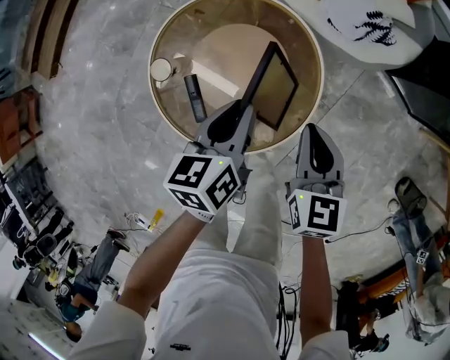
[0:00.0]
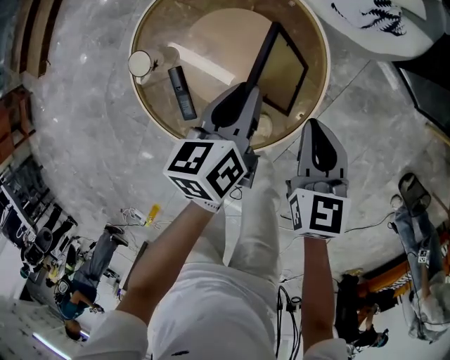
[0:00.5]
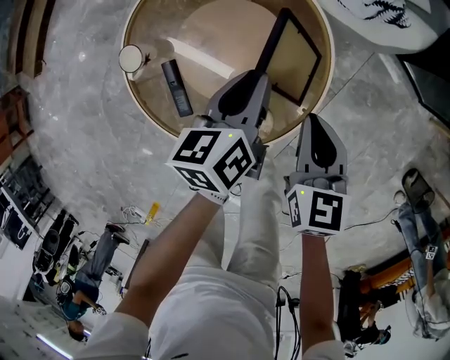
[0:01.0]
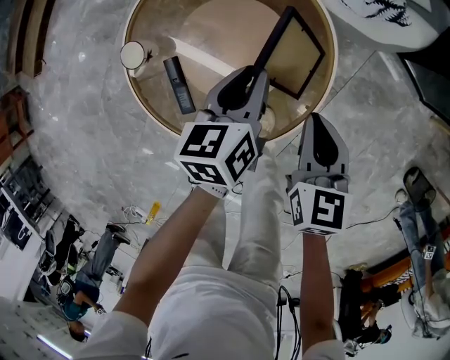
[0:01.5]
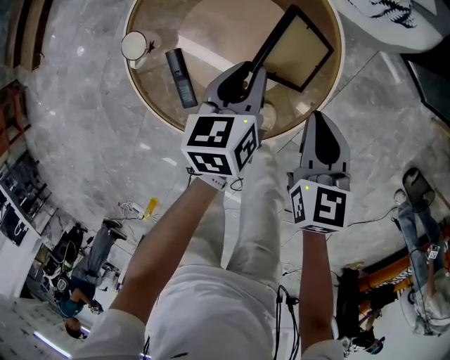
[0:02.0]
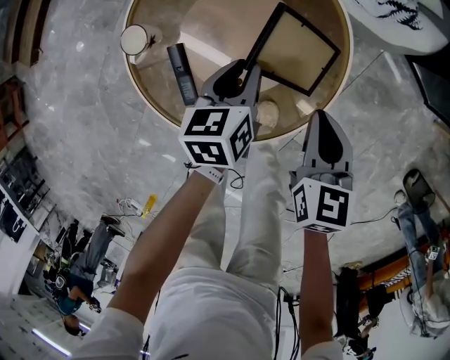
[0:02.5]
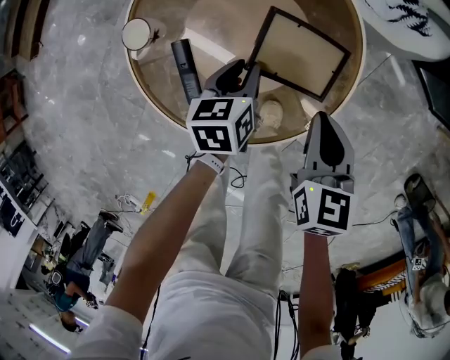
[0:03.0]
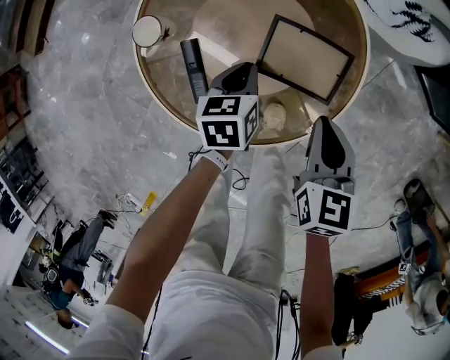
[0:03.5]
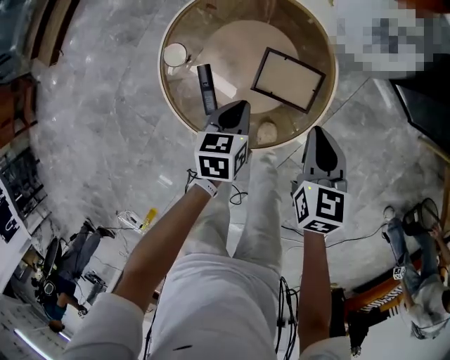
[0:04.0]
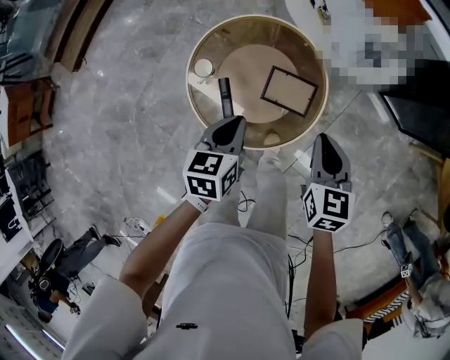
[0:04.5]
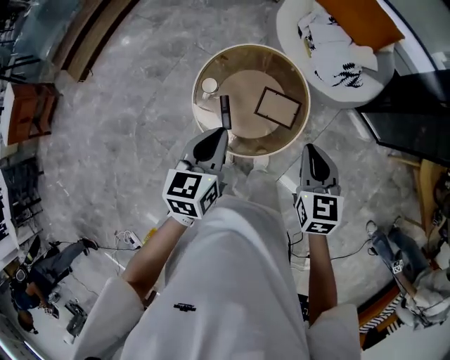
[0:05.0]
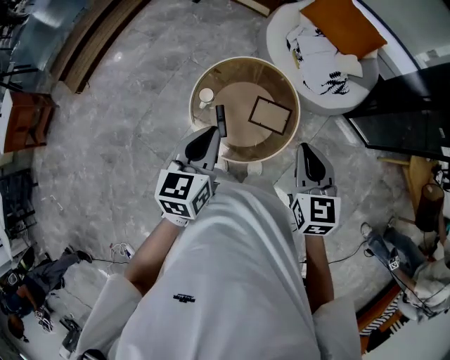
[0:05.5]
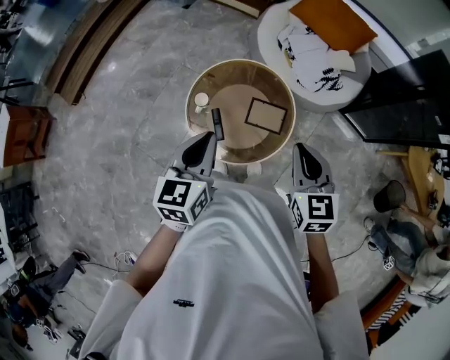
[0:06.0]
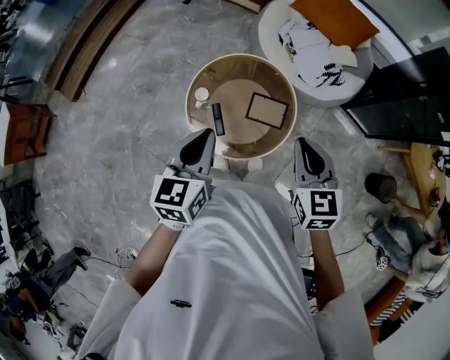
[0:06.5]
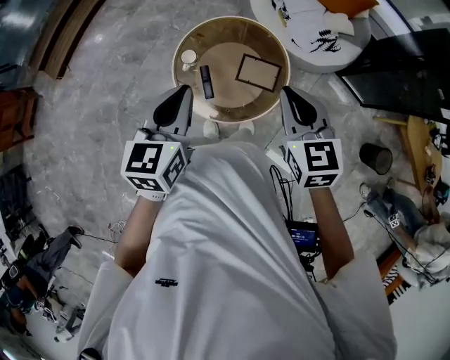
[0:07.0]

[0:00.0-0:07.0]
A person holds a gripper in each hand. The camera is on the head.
0:00.0 to 0:02.0: The two grippers go about 15 cm downward.
0:02.0 to 0:03.5: The left gripper moves downward and to the left, about 10 cm.
0:03.5 to 0:05.0: Both grippers move upward, some 40 cm. The left gripper rotates approximately 20 degrees.
0:05.0 to 0:07.0: Both grippers travel together upward, approximately 10 cm.

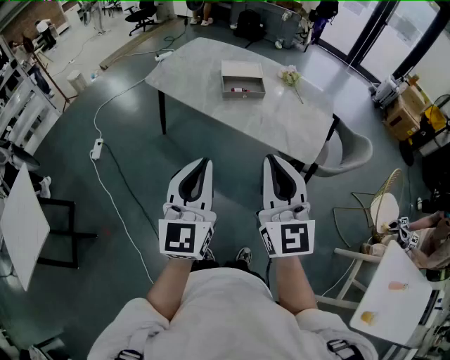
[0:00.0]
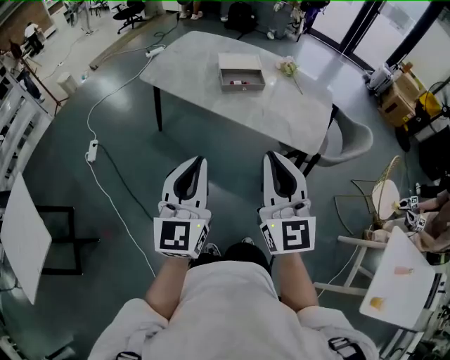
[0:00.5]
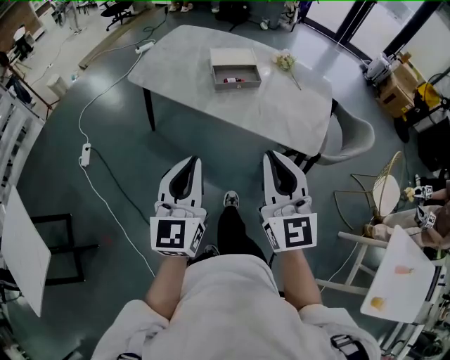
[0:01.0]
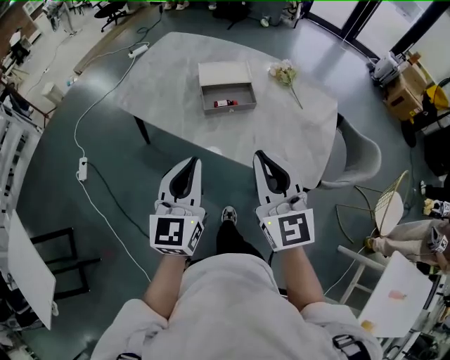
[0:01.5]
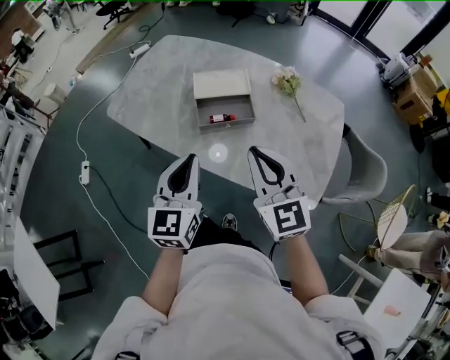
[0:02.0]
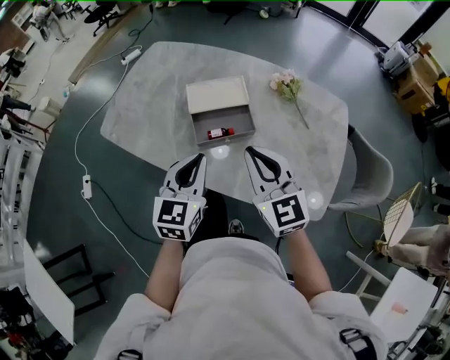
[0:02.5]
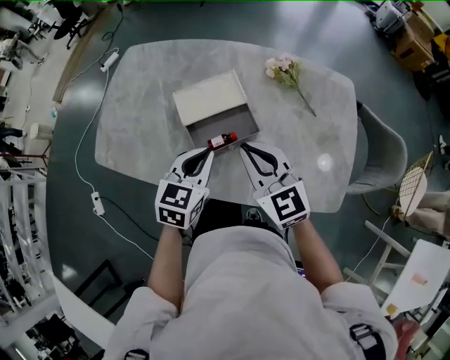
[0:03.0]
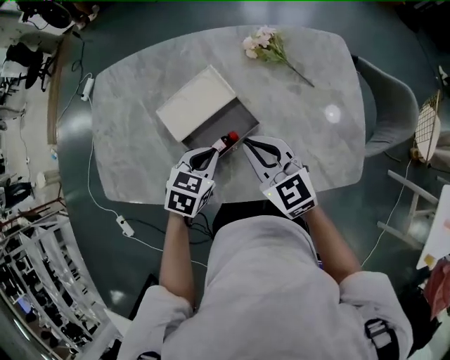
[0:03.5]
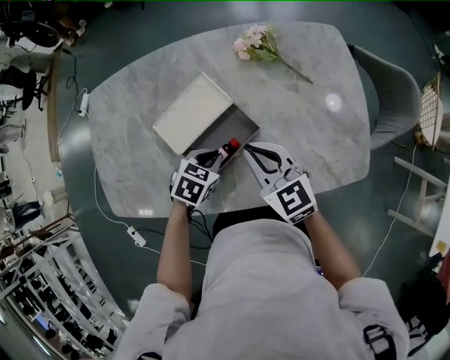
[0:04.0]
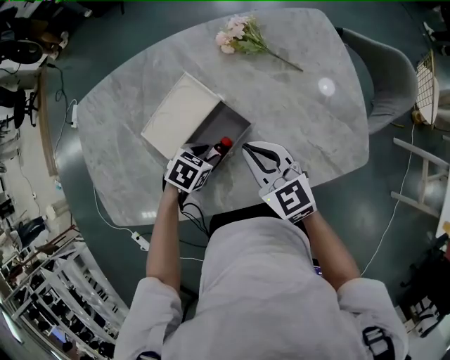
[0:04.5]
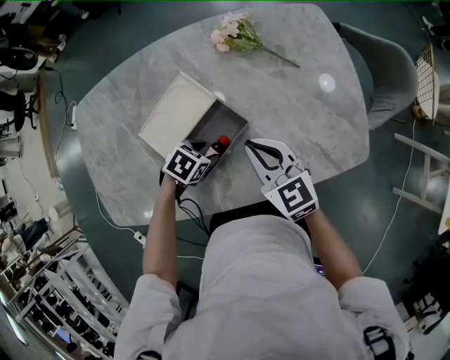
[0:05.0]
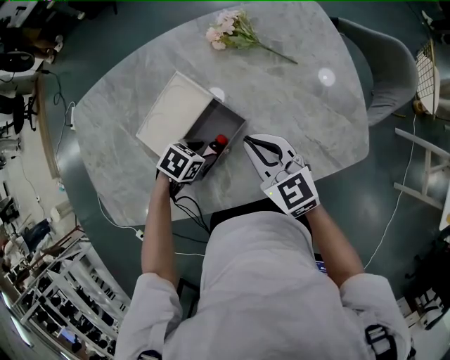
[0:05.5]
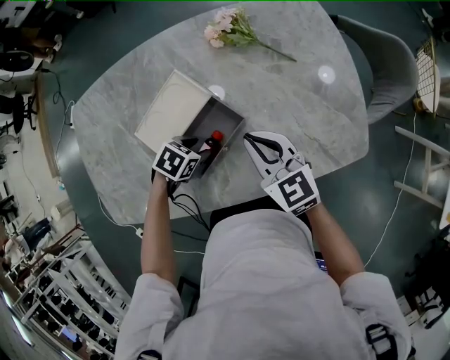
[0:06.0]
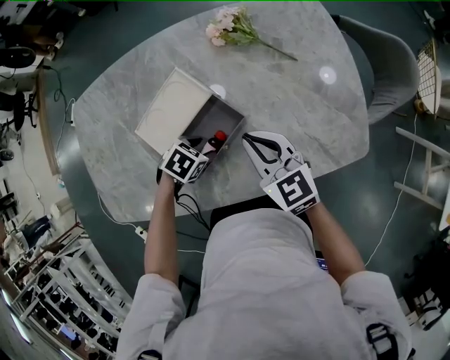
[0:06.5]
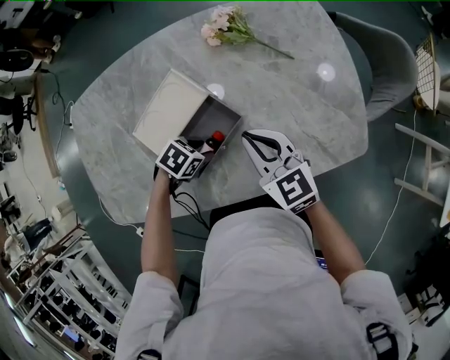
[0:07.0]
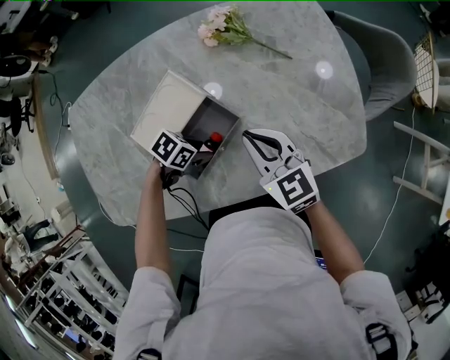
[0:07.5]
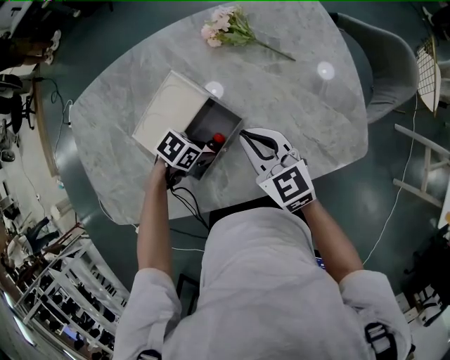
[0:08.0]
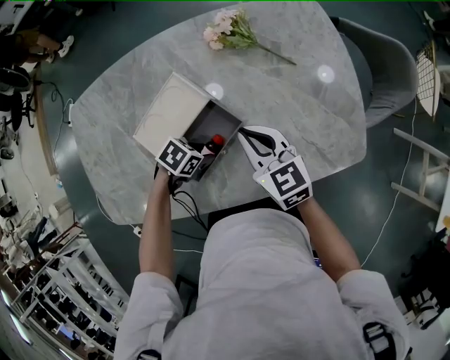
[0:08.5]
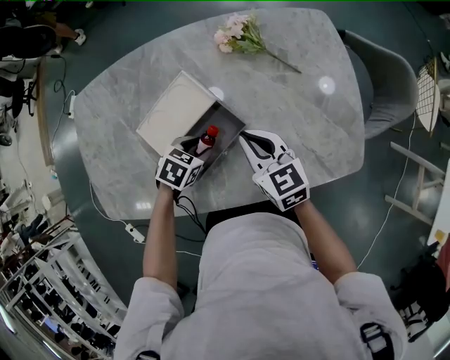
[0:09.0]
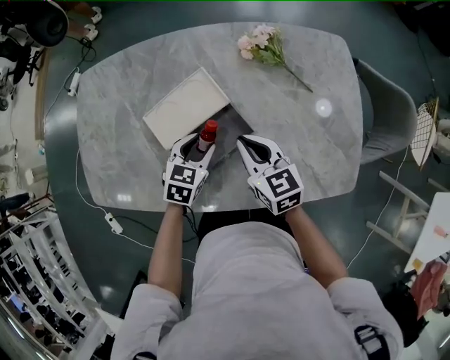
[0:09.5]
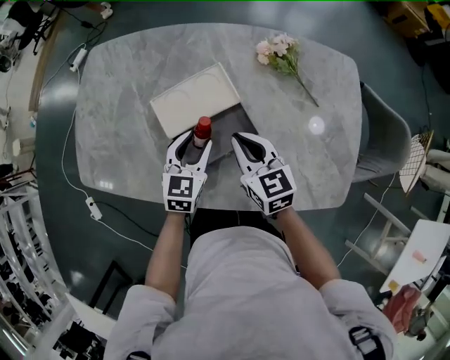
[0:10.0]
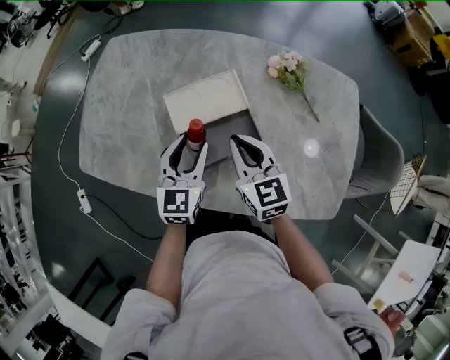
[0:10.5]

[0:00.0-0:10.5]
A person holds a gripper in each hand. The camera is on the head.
0:00.0 to 0:02.0: The two grippers go about 40 cm forward.
0:02.0 to 0:04.0: The right gripper moves about 30 cm, and swivels some 30 degrees. The left gripper travels downward by approximately 25 cm, and tilts its fingers roughly 50 degrees downward.
0:04.0 to 0:06.5: The left gripper shifts some 5 cm downward, rotates some 20 degrees, and opens.
0:08.5 to 0:10.5: The left gripper is displaced upward by about 20 cm, and tips its fingers upward by about 40 degrees, while the right gripper ends up approximately 10 cm from where it was.

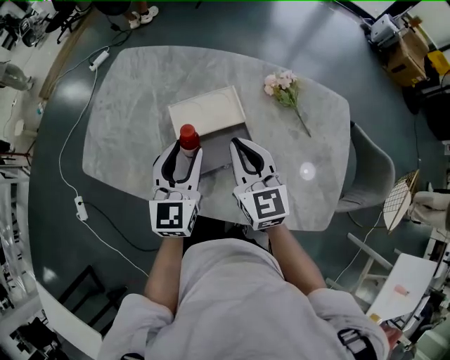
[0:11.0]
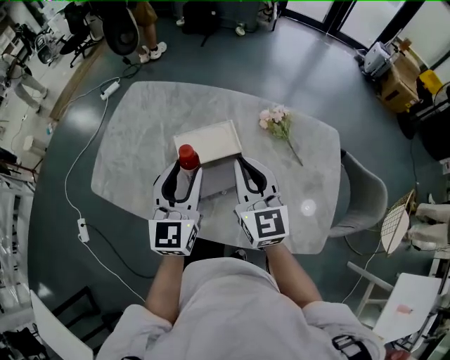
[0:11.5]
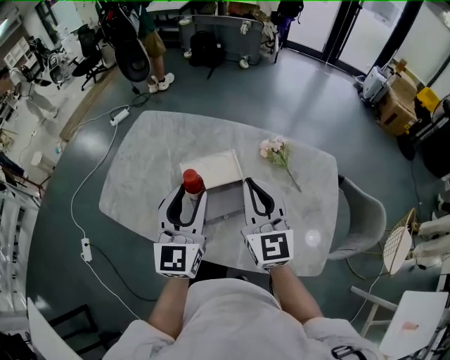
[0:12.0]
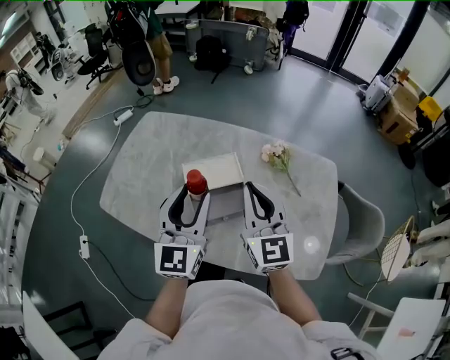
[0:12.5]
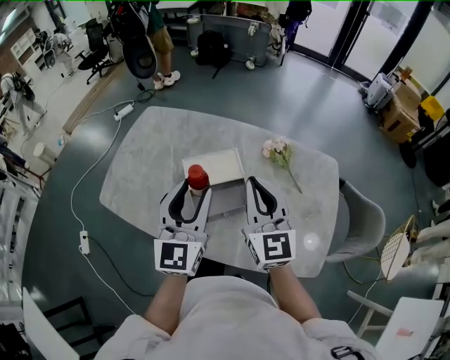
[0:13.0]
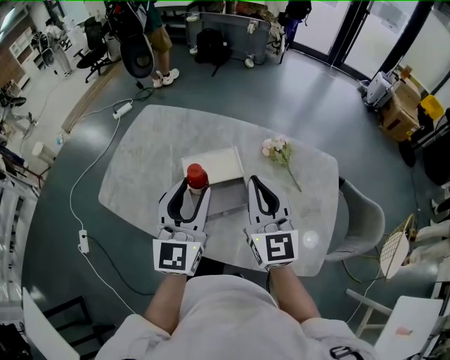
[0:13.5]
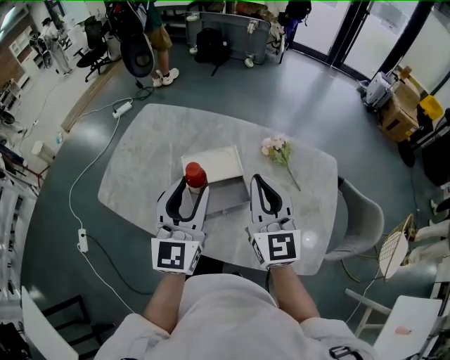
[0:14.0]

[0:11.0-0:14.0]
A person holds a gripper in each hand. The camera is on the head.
0:11.0 to 0:12.5: Both grippers move upward, some 15 cm.
0:12.5 to 0:14.0: The grippers move only a little.

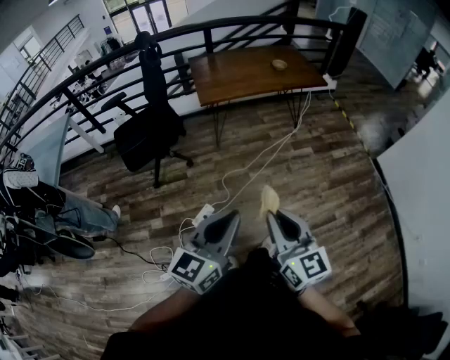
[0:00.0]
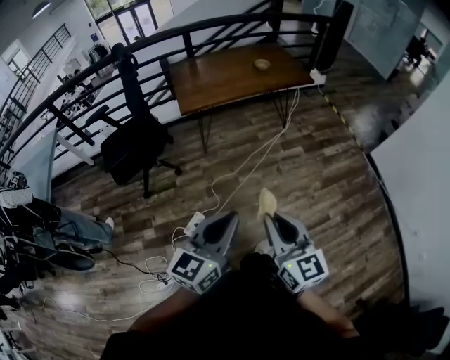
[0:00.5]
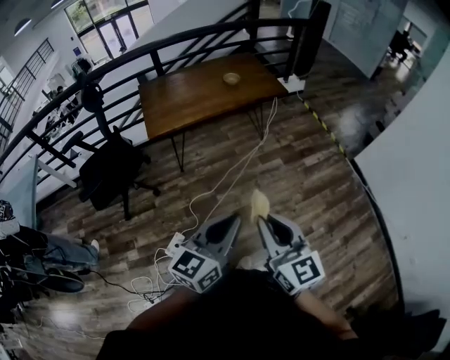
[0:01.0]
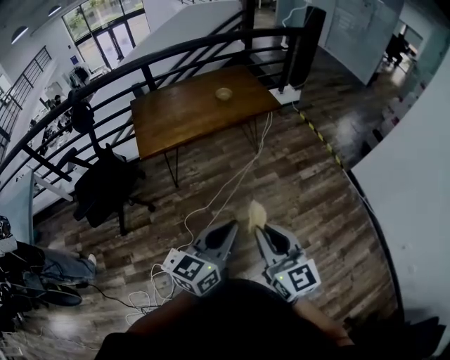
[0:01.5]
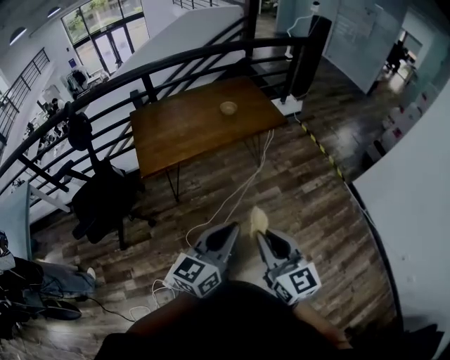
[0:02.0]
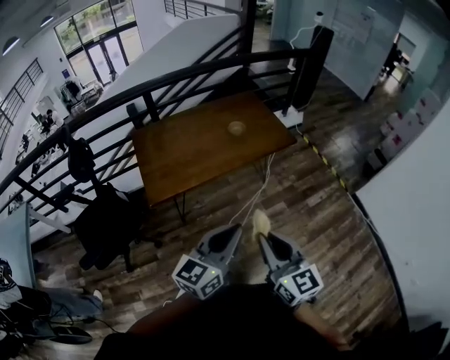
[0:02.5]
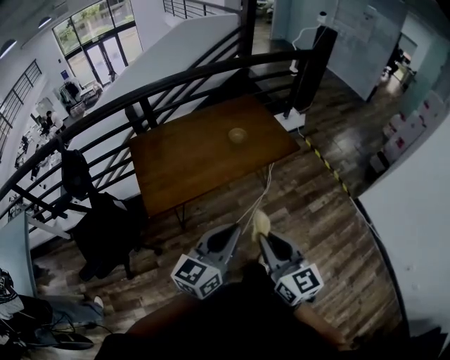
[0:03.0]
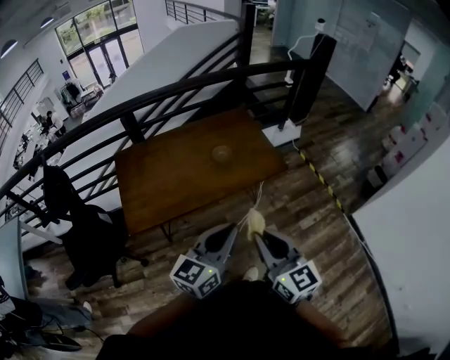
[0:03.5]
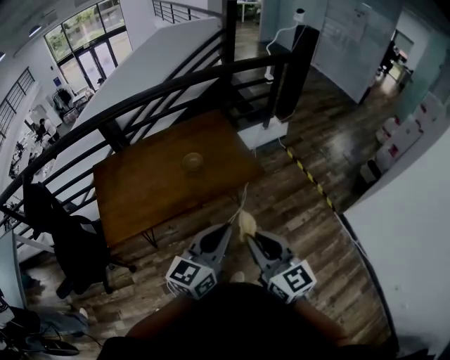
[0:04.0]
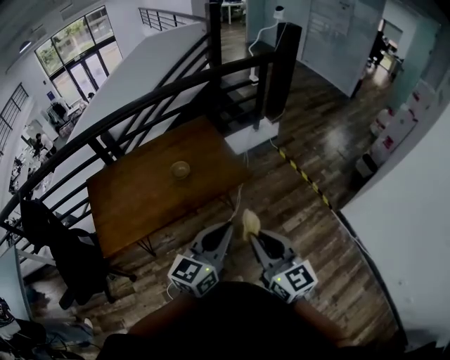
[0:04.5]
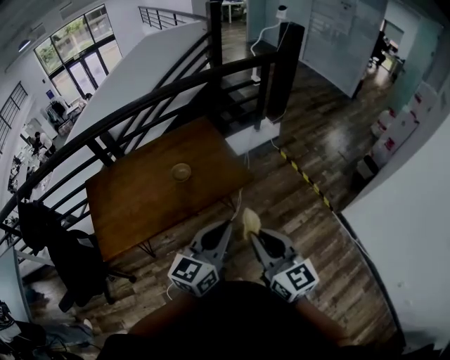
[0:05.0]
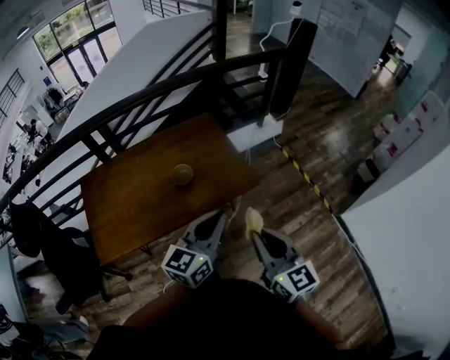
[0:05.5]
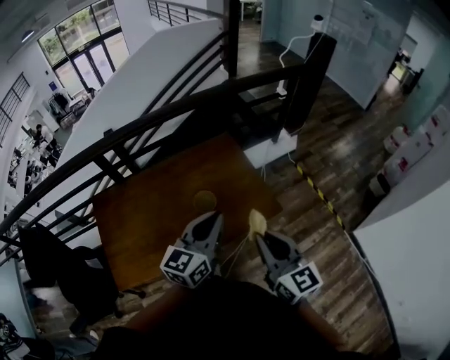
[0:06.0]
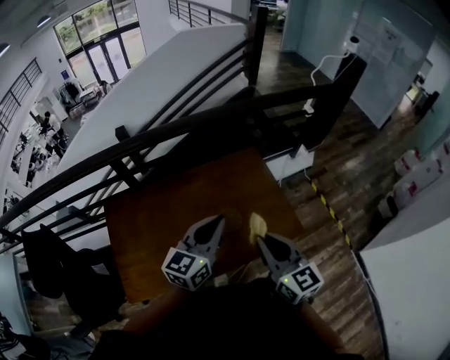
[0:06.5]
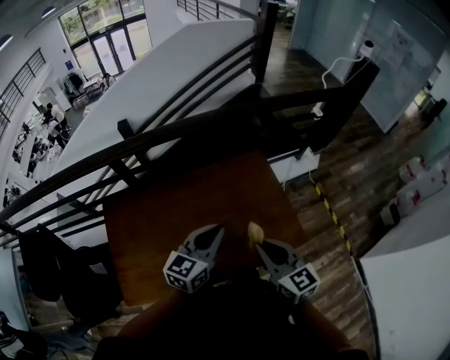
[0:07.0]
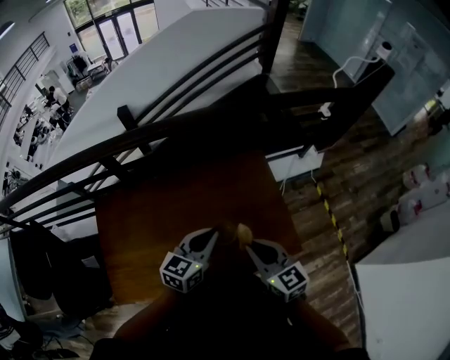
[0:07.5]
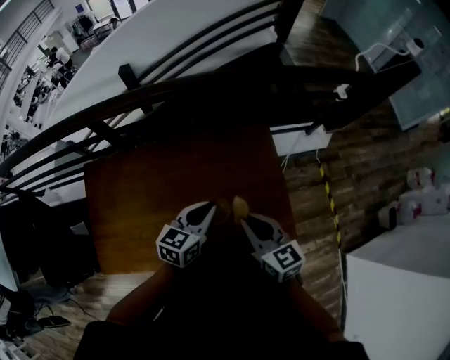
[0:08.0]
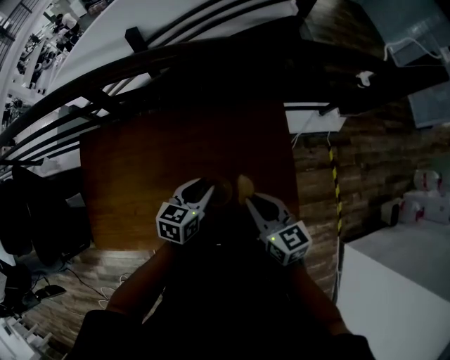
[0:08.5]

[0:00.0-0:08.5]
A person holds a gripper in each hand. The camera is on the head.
0:00.0 to 0:02.0: Both grippers move forward and to the right, approximately 40 cm.
0:02.0 to 0:04.0: The grippers both shift forward by roughly 35 cm.
0:04.0 to 0:06.5: Both grippers travel together forward and to the left, approximately 40 cm.
0:06.5 to 0:08.5: The two grippers go roughly 25 cm downward and forward. The left gripper rotates roughly 30 degrees, and opens its fingers. Meanwhile the right gripper rotates about 30 degrees.
